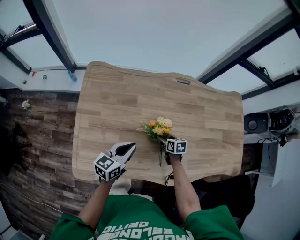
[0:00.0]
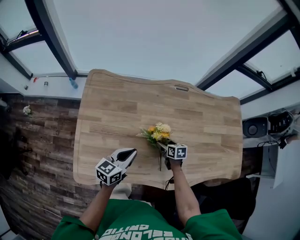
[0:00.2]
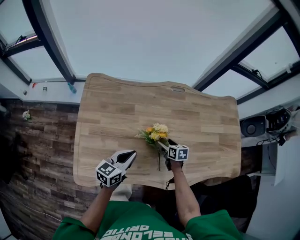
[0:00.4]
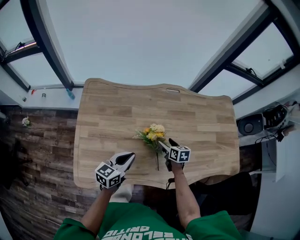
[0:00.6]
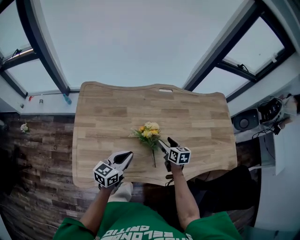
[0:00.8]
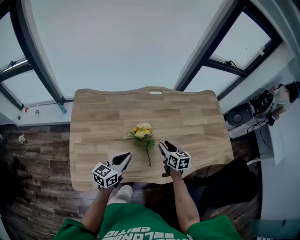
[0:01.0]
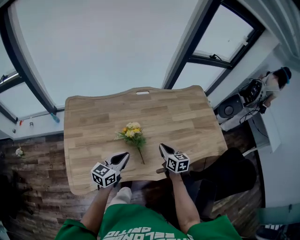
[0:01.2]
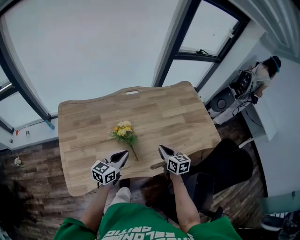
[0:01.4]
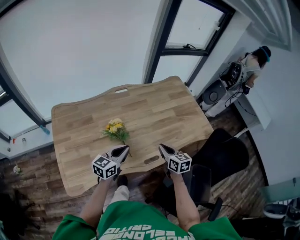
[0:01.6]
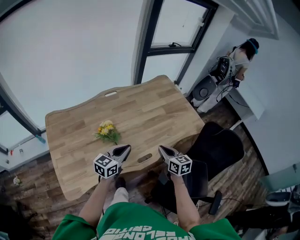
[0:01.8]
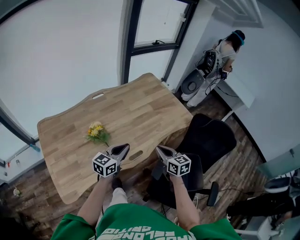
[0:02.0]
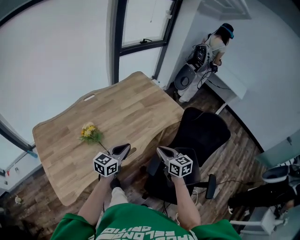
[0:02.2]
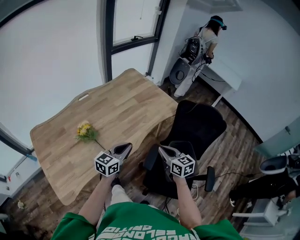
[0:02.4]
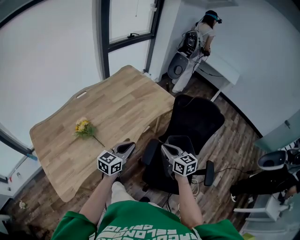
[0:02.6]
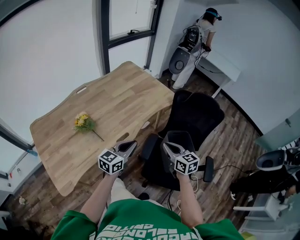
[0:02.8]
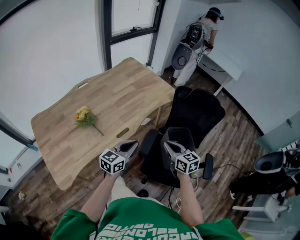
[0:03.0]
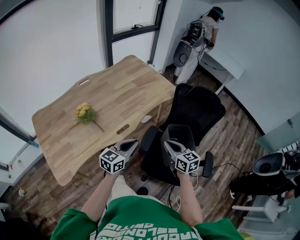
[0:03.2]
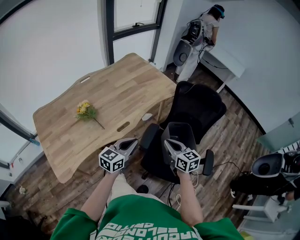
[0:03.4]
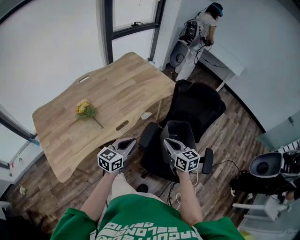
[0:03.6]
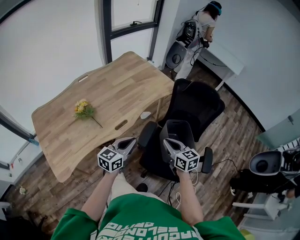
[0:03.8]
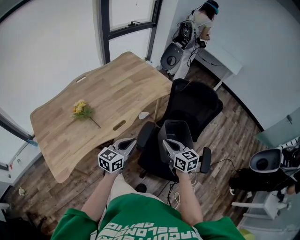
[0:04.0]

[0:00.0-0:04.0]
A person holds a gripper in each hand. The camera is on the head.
0:00.0 to 0:01.4: The left gripper is displaced to the right, upward and backward by roughly 15 cm, and swivels approximately 20 degrees, while the right gripper shifts some 30 cm upward, to the right and backward, changes its angle by approximately 30 degrees, and closes its fingers.
0:01.4 to 0:02.6: The left gripper ends up approximately 30 cm from where it was, and rotates approximately 30 degrees. Meanwhile the right gripper ends up approximately 35 cm from where it was, and changes its angle by about 20 degrees.
0:02.6 to 0:04.0: The two grippers go some 10 cm backward and to the right.

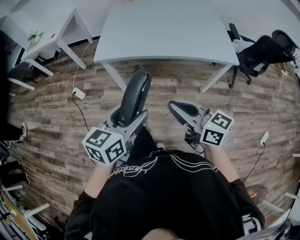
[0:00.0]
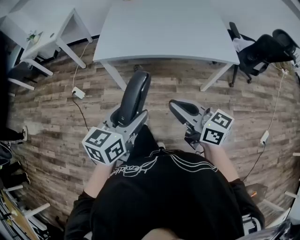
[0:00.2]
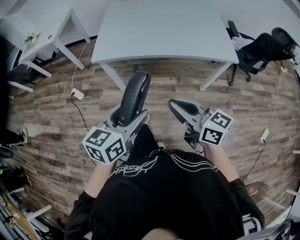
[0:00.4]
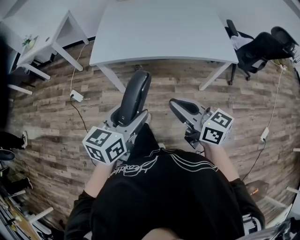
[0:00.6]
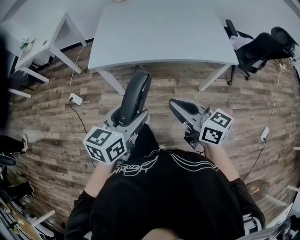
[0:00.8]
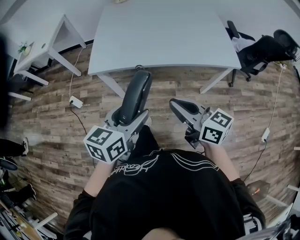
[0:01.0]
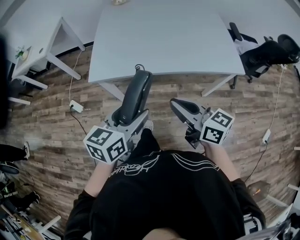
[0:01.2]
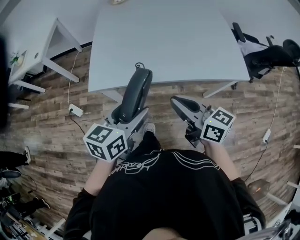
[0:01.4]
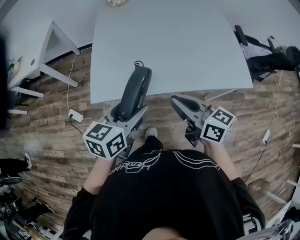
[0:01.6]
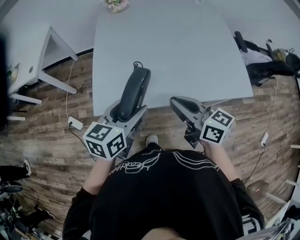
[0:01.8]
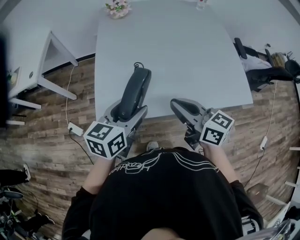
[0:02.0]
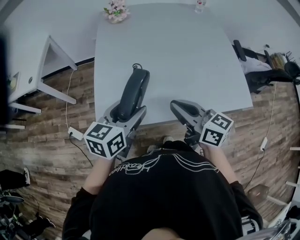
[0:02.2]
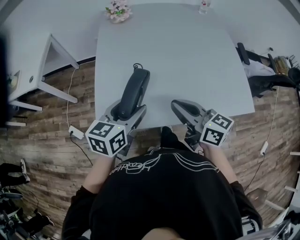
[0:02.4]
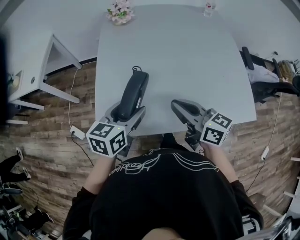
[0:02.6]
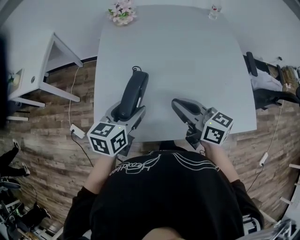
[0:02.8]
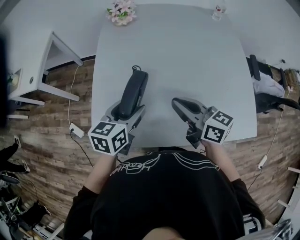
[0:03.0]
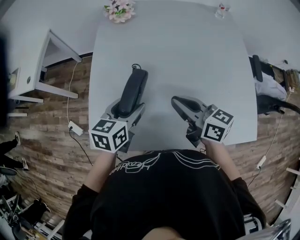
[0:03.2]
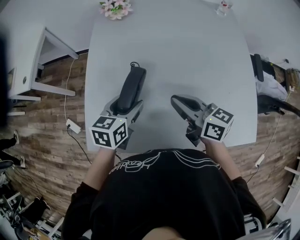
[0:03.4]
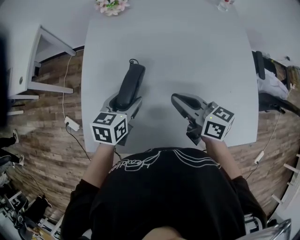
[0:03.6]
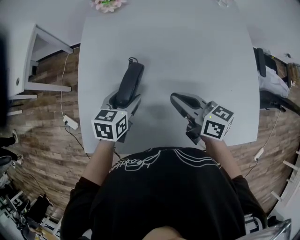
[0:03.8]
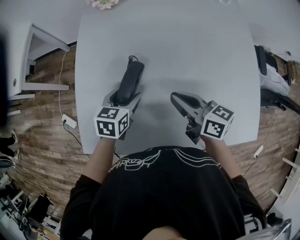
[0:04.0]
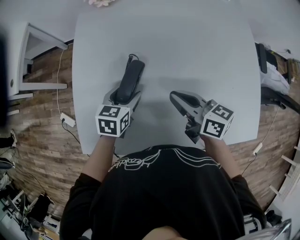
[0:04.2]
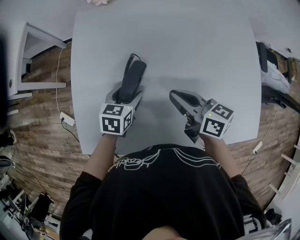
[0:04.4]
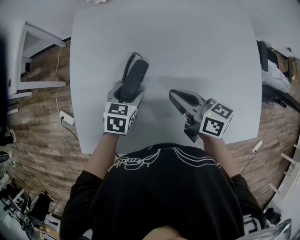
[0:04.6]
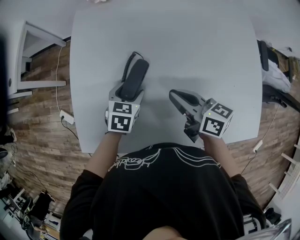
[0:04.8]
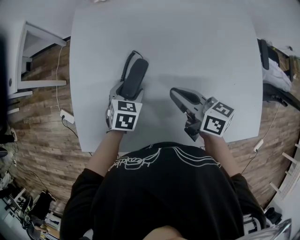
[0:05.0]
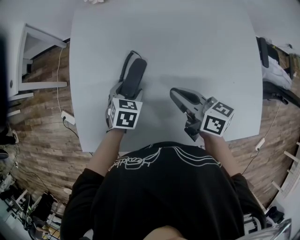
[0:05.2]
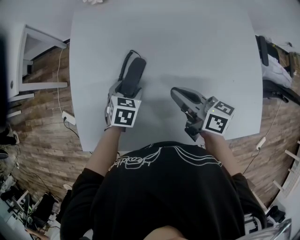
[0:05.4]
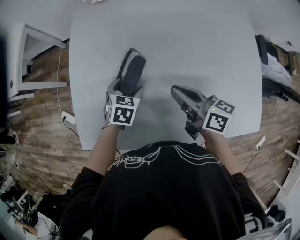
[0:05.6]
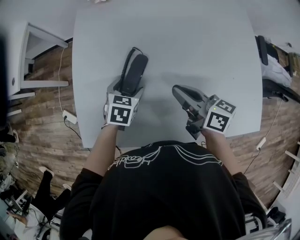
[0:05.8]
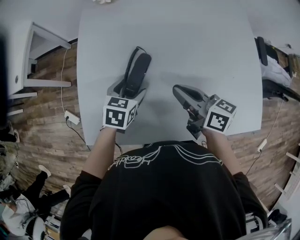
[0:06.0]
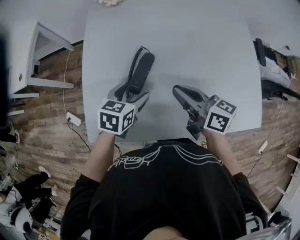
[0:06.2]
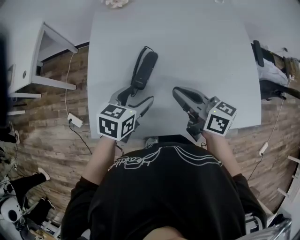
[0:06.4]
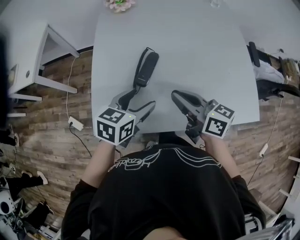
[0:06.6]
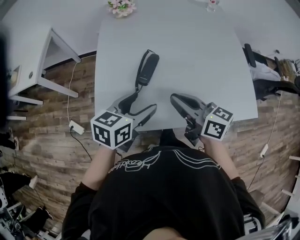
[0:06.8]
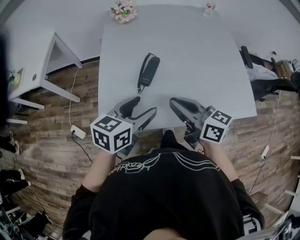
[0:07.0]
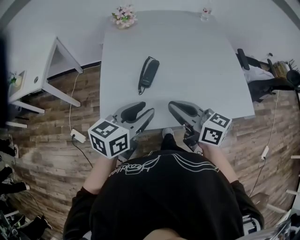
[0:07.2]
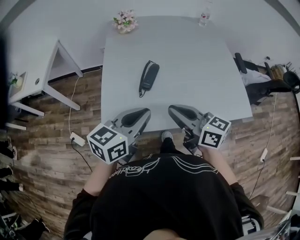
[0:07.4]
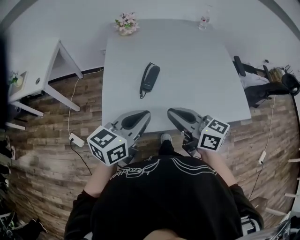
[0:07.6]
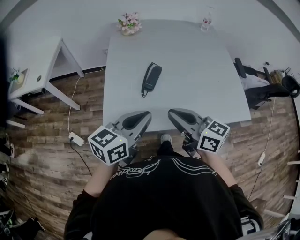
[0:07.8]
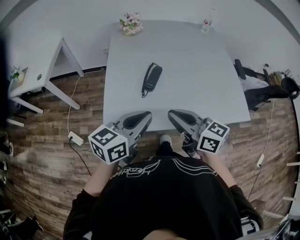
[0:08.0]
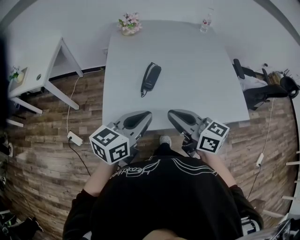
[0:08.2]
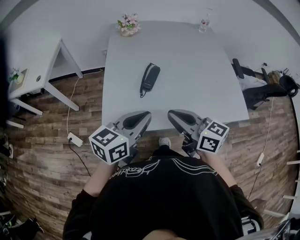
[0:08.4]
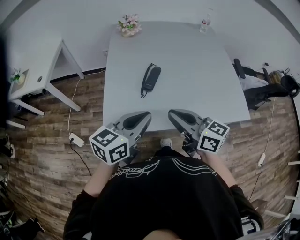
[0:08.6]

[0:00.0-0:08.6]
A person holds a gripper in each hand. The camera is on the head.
0:00.0 to 0:01.4: Both grippers travel together forward, some 20 cm.
0:01.4 to 0:02.8: The two grippers go about 30 cm forward.
0:02.8 to 0:04.4: The right gripper is displaced forward and downward by about 15 cm. The left gripper is displaced downward and forward by about 20 cm.
0:04.4 to 0:05.8: The grippers stay close to where they were, moving slightly.
0:05.8 to 0:07.2: The right gripper goes approximately 25 cm backward, upward and to the left. Meanwhile the left gripper is displaced upward and backward by approximately 30 cm, tips its fingers upward by about 40 degrees, and closes.
0:07.2 to 0:08.6: The left gripper closes its fingers.

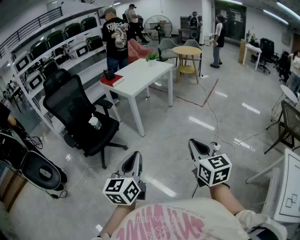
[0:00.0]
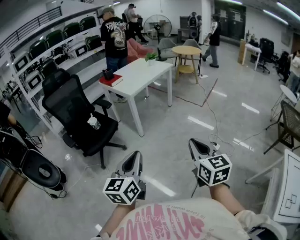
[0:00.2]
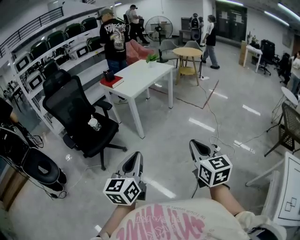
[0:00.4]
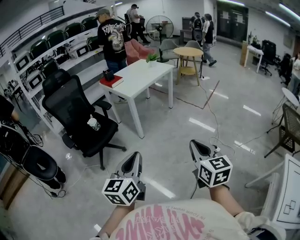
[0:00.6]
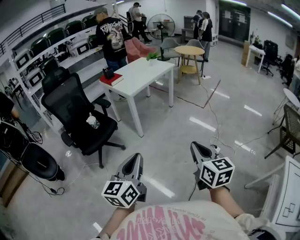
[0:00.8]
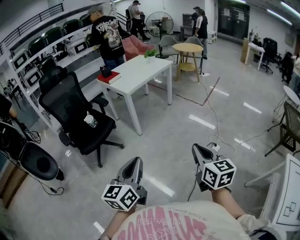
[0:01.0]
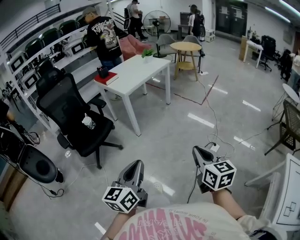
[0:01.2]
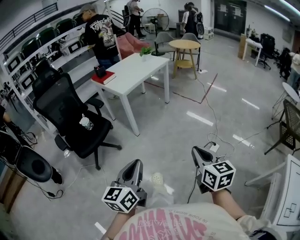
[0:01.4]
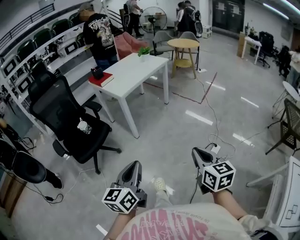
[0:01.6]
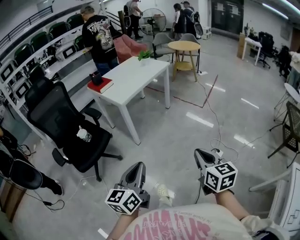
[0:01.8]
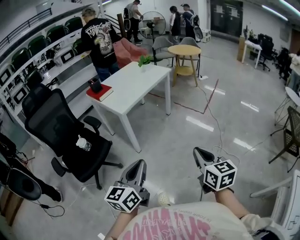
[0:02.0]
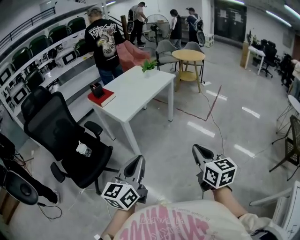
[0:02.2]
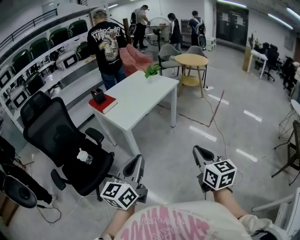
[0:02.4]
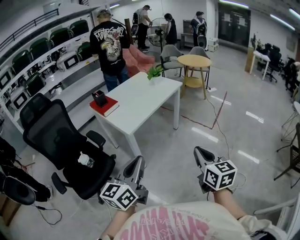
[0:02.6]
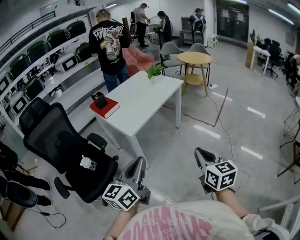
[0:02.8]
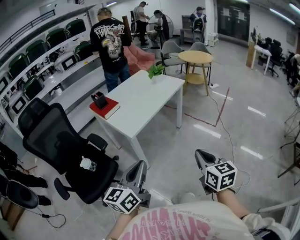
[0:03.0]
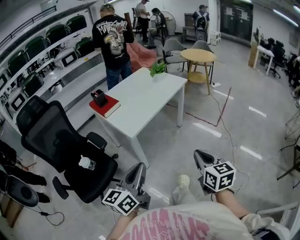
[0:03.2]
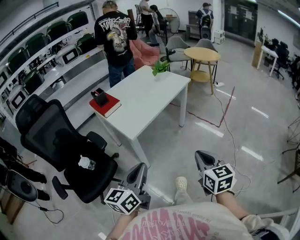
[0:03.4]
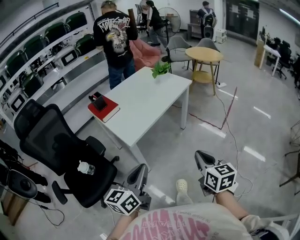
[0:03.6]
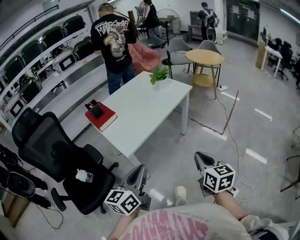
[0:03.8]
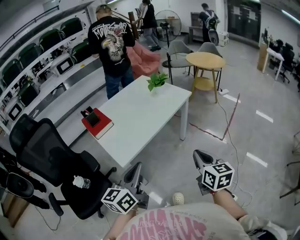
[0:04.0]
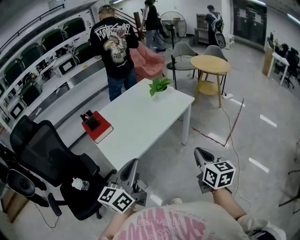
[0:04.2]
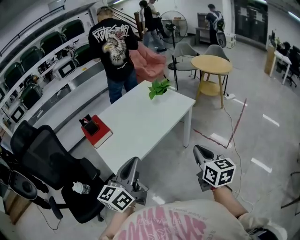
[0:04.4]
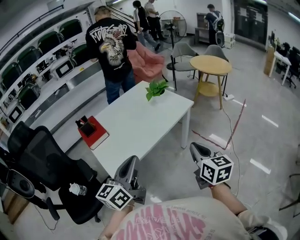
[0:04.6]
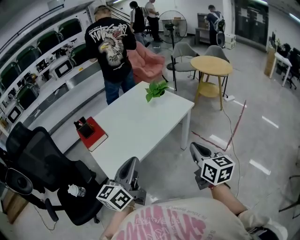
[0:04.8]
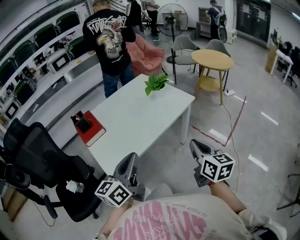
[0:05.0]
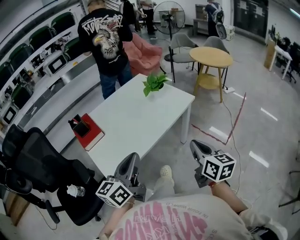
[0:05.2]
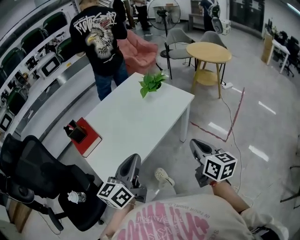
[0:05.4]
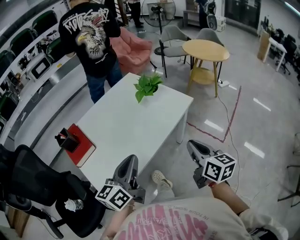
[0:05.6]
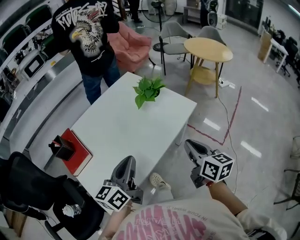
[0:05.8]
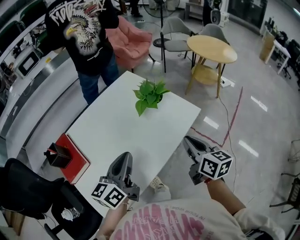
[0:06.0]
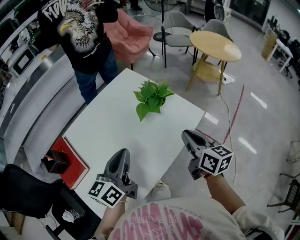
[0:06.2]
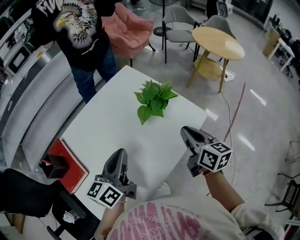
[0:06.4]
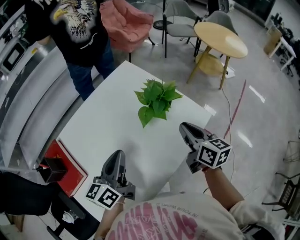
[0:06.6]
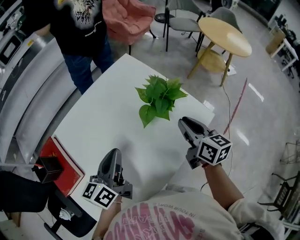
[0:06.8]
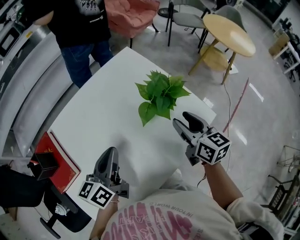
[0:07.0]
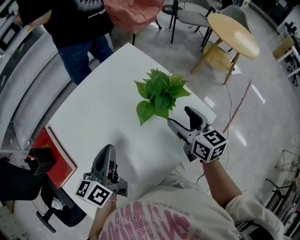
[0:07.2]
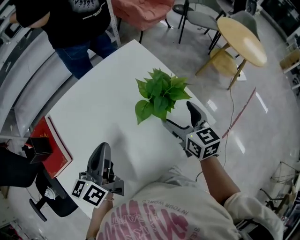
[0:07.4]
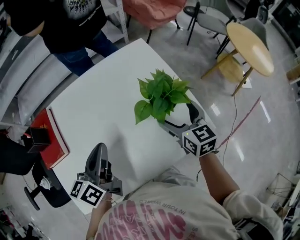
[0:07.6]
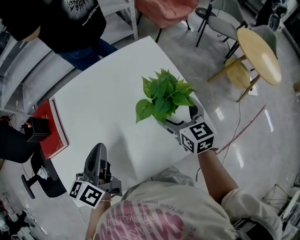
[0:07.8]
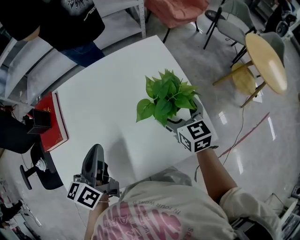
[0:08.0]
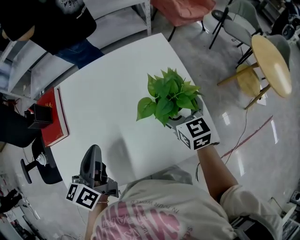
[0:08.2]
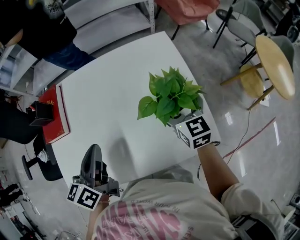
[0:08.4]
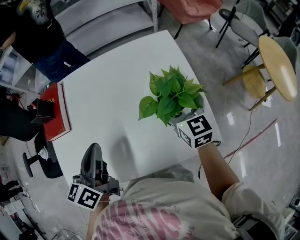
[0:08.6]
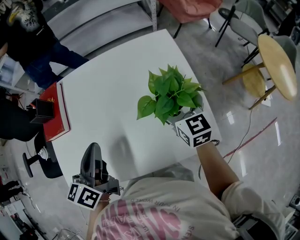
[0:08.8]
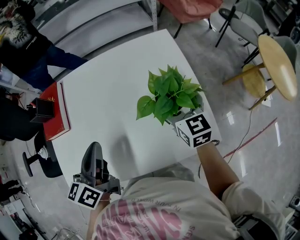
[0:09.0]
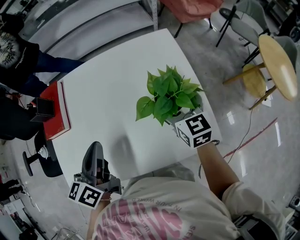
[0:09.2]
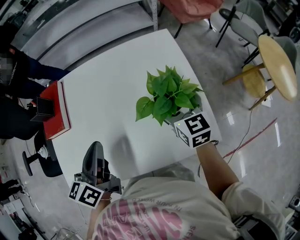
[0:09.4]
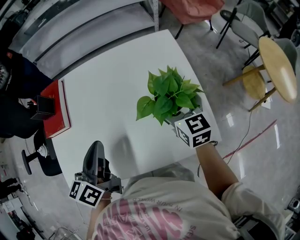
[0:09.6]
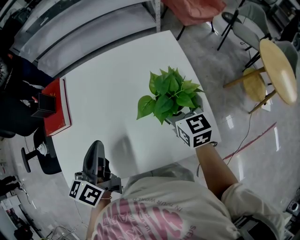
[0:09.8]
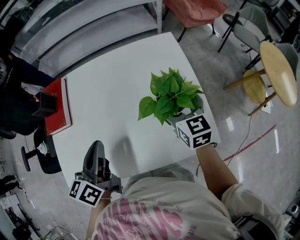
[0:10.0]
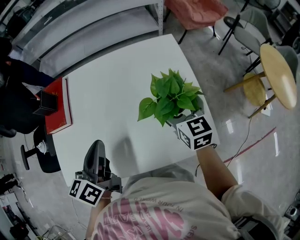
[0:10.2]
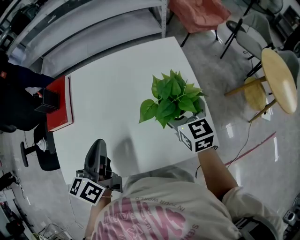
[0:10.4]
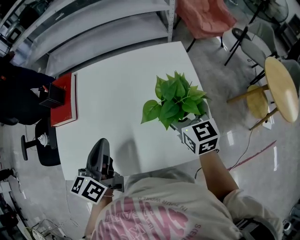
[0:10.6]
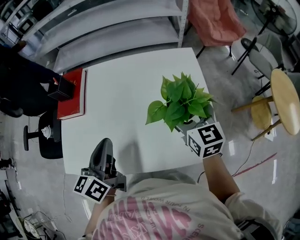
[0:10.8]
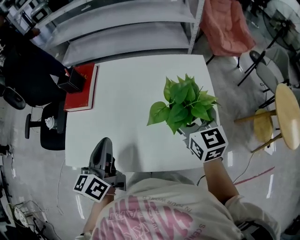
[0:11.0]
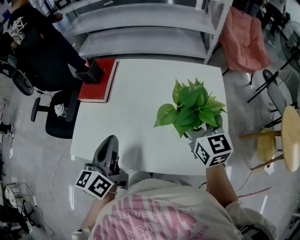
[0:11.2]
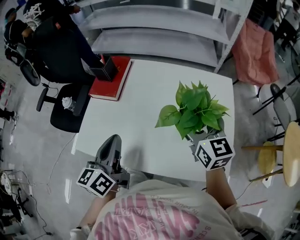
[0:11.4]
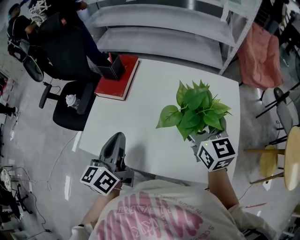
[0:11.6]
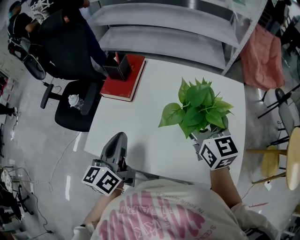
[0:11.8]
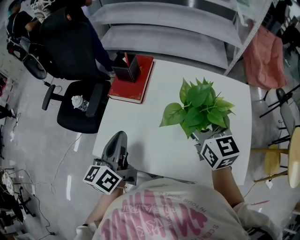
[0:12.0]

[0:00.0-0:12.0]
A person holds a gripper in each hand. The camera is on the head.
0:00.0 to 0:01.6: The left gripper moves forward and downward, about 15 cm. The right gripper goes some 15 cm forward, downward and to the right.
0:01.6 to 0:03.0: The grippers both shift forward by about 40 cm.
0:03.0 to 0:04.4: The grippers both shift forward by approximately 35 cm.
0:04.4 to 0:06.0: The two grippers go about 35 cm forward.
0:06.0 to 0:07.6: The right gripper goes roughly 25 cm forward, changes its angle by roughly 30 degrees, and opens. The left gripper moves forward and downward, roughly 15 cm, and rotates roughly 30 degrees.
0:07.6 to 0:09.0: The right gripper goes some 5 cm forward.
0:09.0 to 0:10.4: There are only small adjustments of the grippers.
0:10.4 to 0:12.0: The left gripper heads to the left, covering approximately 25 cm, and turns by about 30 degrees. The right gripper heads to the left and upward, covering about 30 cm, and swivels about 20 degrees.
